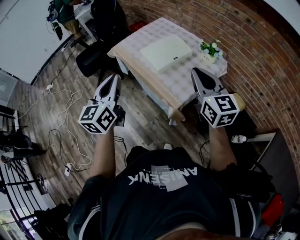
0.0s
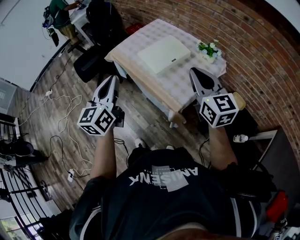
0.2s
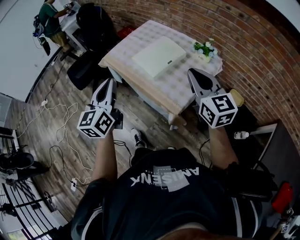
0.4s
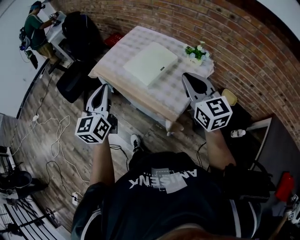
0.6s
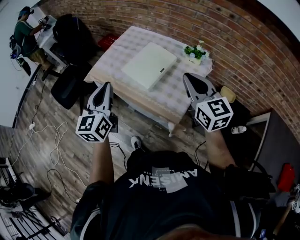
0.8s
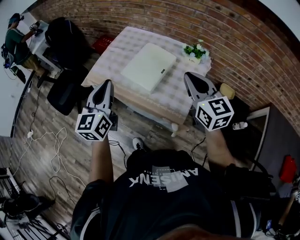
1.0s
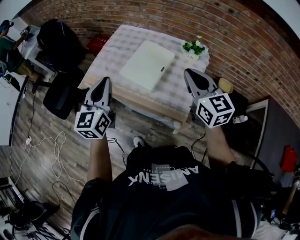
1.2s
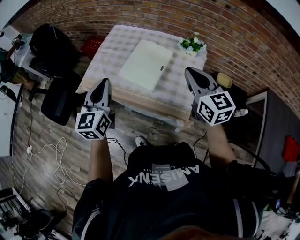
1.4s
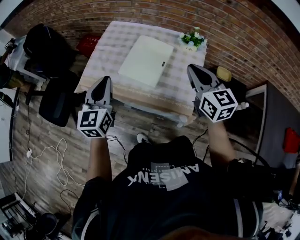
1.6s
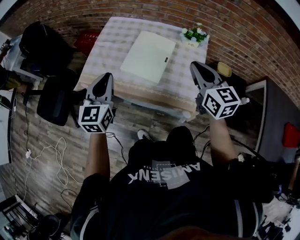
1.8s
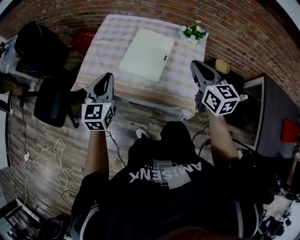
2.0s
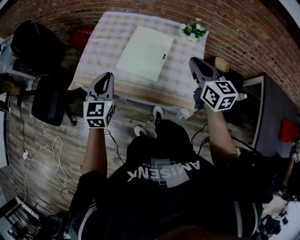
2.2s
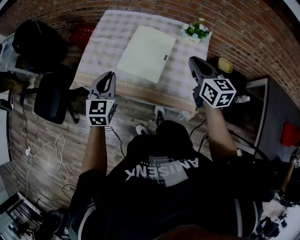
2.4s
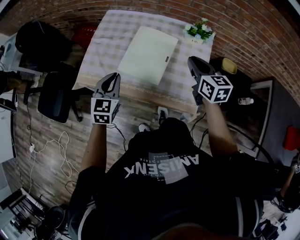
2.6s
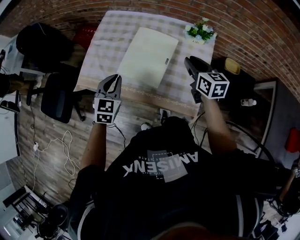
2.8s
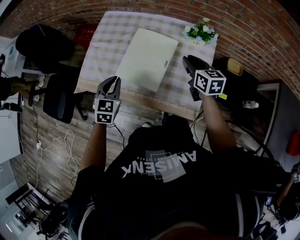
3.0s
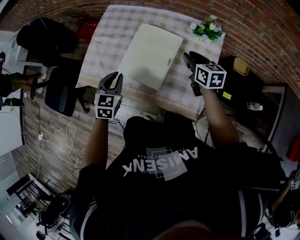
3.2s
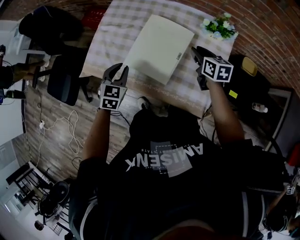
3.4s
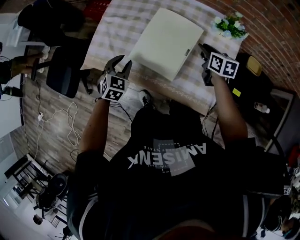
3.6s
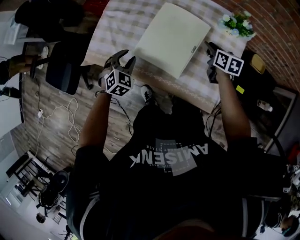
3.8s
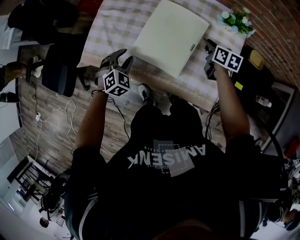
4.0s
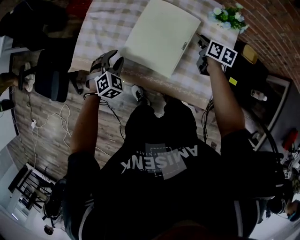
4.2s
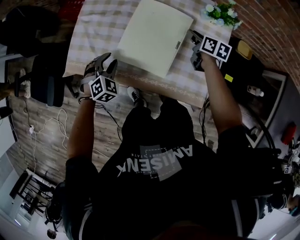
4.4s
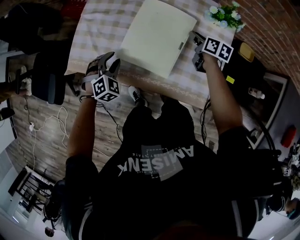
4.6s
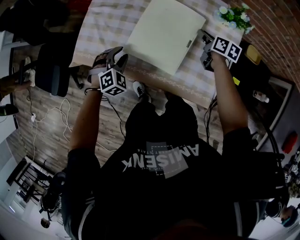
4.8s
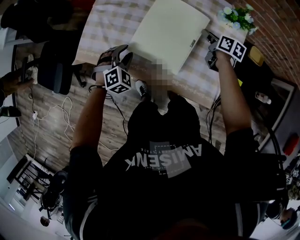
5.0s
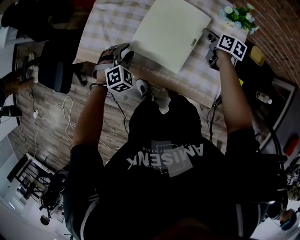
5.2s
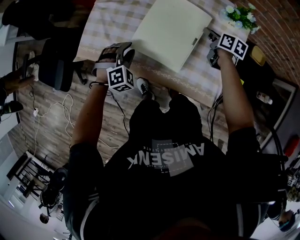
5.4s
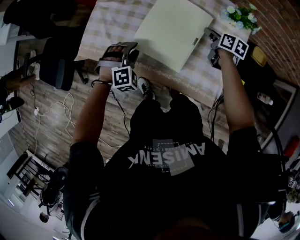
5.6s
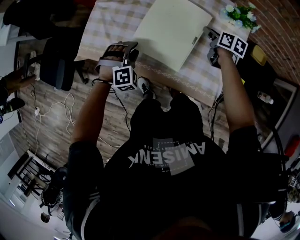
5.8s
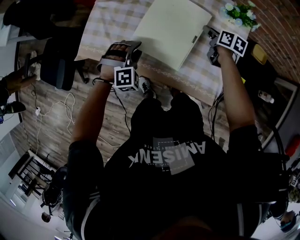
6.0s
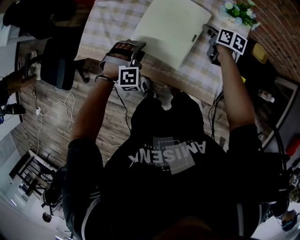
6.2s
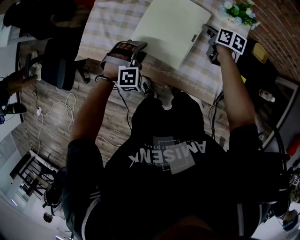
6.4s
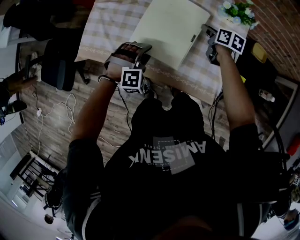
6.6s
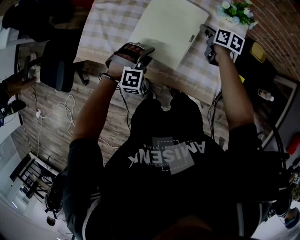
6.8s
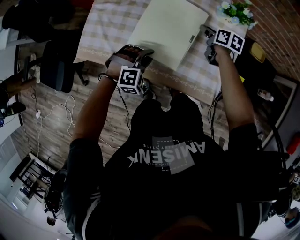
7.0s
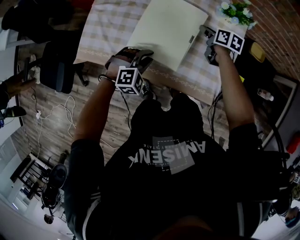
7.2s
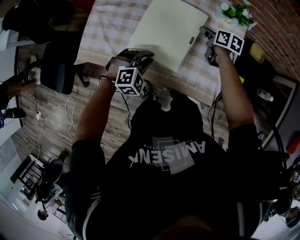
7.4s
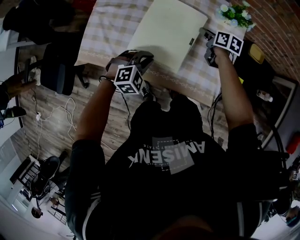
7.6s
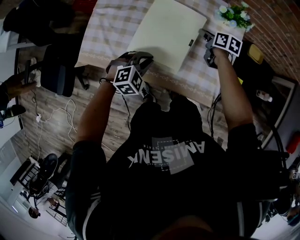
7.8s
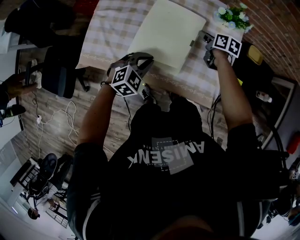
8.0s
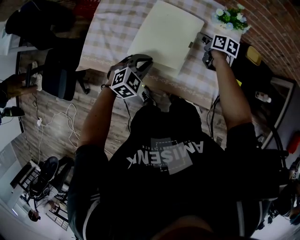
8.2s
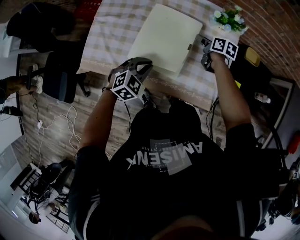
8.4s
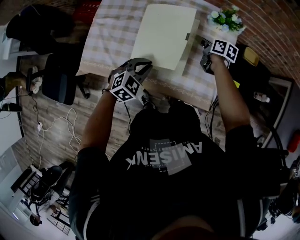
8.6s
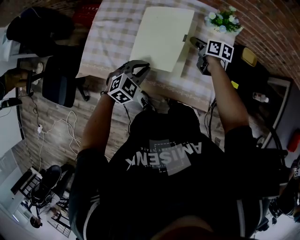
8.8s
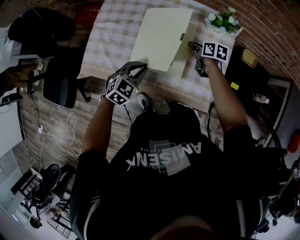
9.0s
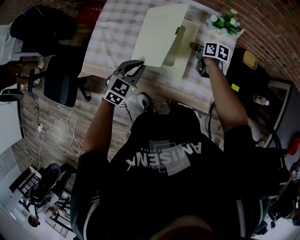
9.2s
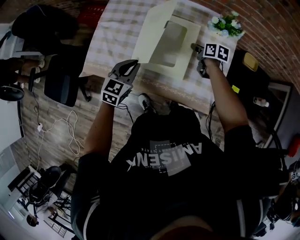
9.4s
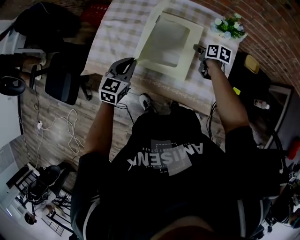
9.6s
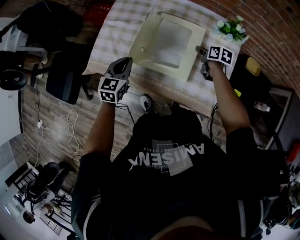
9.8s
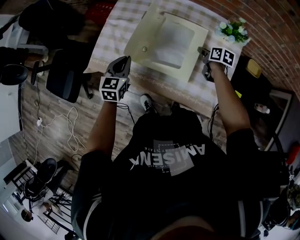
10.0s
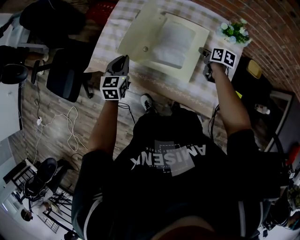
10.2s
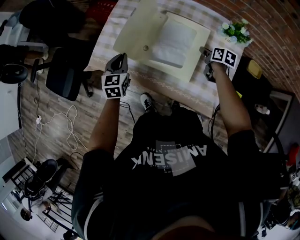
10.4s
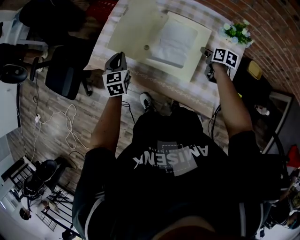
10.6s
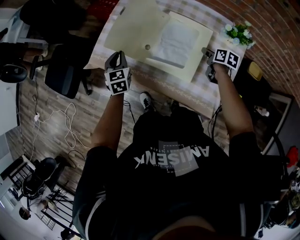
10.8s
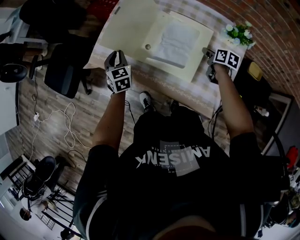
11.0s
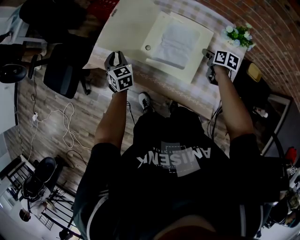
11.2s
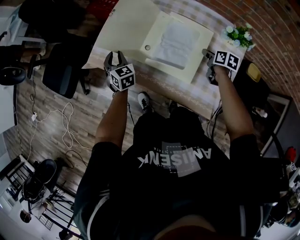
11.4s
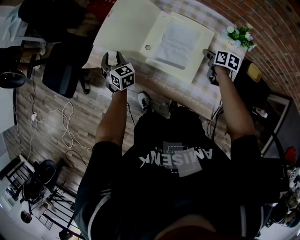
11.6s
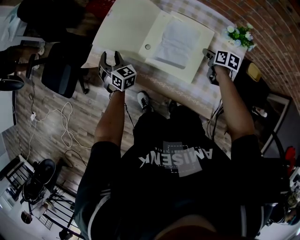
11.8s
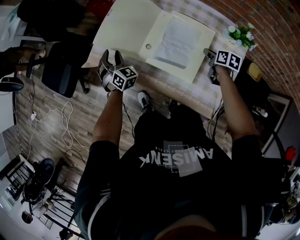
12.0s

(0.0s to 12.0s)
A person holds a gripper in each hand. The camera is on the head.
0.0s - 1.6s: The right gripper changes place by approximately 20 cm, and changes its angle by approximately 30 degrees, while the left gripper changes place by some 30 cm, and swivels about 30 degrees.
1.6s - 3.0s: Both grippers move downward and forward, some 20 cm. The right gripper turns by some 20 degrees. The left gripper swivels roughly 30 degrees.
3.0s - 4.4s: The right gripper shifts roughly 20 cm downward and forward, and rotates some 30 degrees. The left gripper goes some 15 cm downward, rotates approximately 40 degrees, and opens up.
4.4s - 6.0s: The left gripper shifts some 5 cm to the right, and rotates approximately 30 degrees.
6.0s - 7.6s: The left gripper travels to the right by about 5 cm, rotates some 30 degrees, and closes.
7.6s - 9.0s: The left gripper shifts by approximately 5 cm, and changes its angle by about 30 degrees.
9.0s - 10.4s: The left gripper moves to the left and forward, roughly 15 cm, and rotates approximately 50 degrees.
10.4s - 12.0s: The left gripper is displaced to the left, downward and forward by approximately 10 cm, rotates about 40 degrees, and opens its fingers.

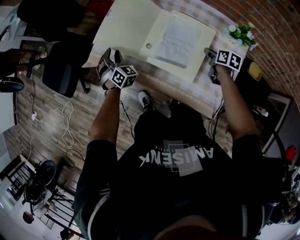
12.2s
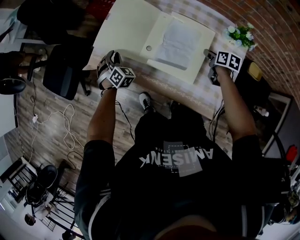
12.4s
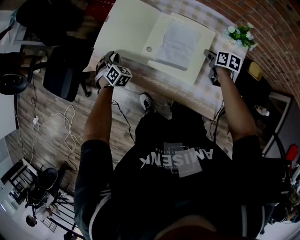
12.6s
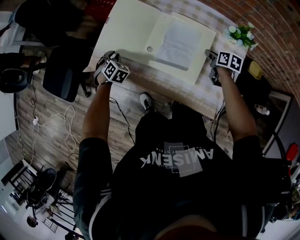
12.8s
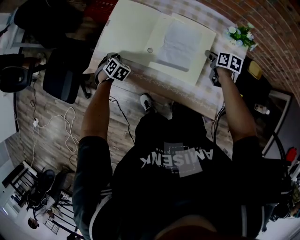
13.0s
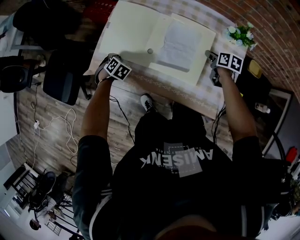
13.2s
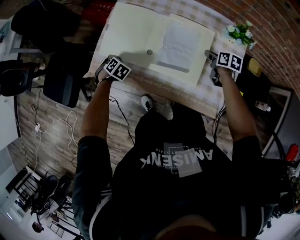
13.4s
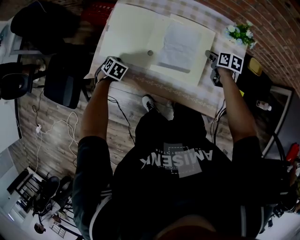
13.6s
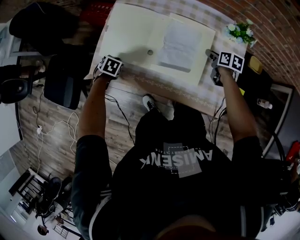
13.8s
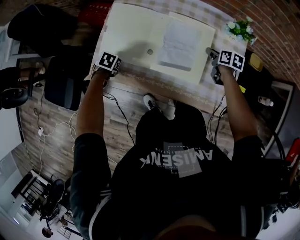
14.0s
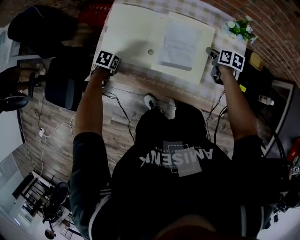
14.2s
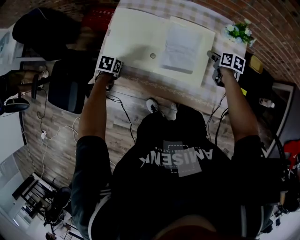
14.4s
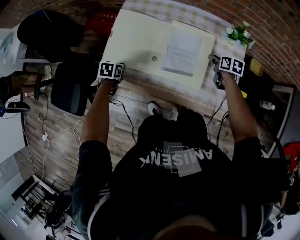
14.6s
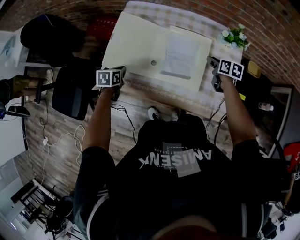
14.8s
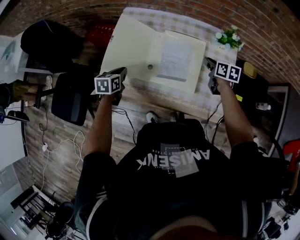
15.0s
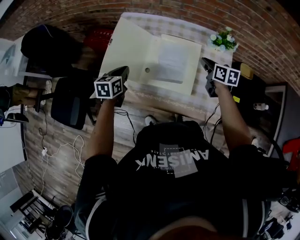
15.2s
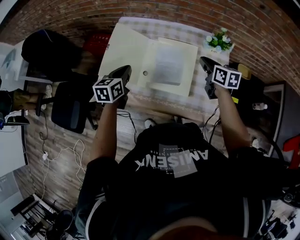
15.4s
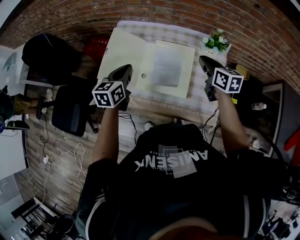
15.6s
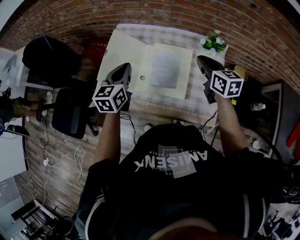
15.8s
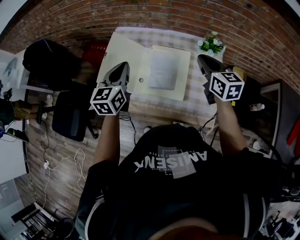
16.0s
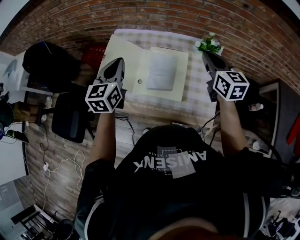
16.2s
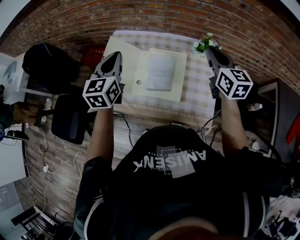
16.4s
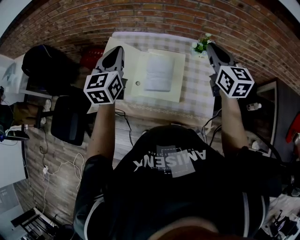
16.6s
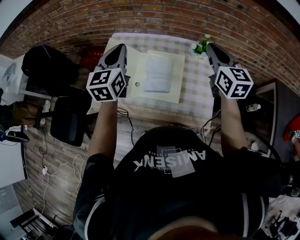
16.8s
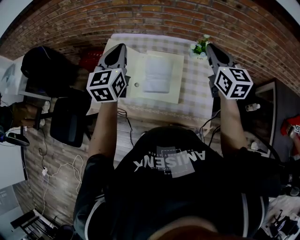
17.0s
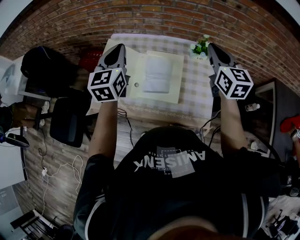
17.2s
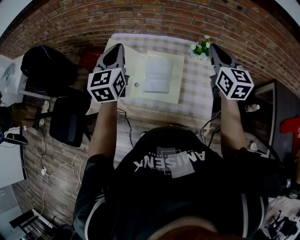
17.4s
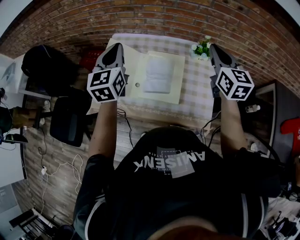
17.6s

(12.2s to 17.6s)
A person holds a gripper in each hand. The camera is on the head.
12.2s - 13.6s: The left gripper shifts roughly 10 cm downward, angles its fingers downward, by about 40 degrees, and closes.
13.6s - 15.0s: The left gripper heads upward, covering roughly 15 cm, and swivels roughly 40 degrees. The right gripper travels upward by approximately 10 cm.
15.0s - 16.2s: The left gripper goes roughly 25 cm upward and to the right, and tips its fingers upward by some 30 degrees. Meanwhile the right gripper heads upward, covering approximately 25 cm, and rotates roughly 30 degrees.
16.2s - 17.6s: The two grippers go approximately 5 cm upward.

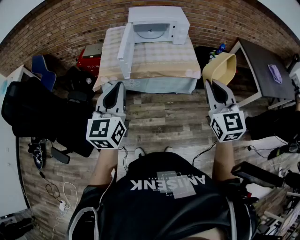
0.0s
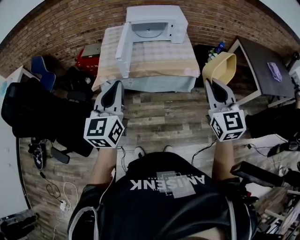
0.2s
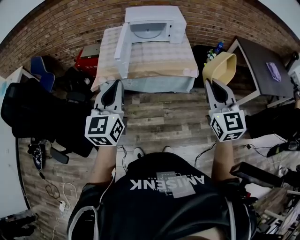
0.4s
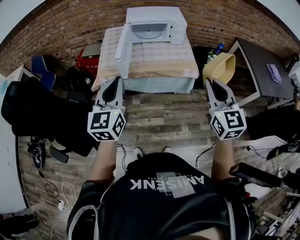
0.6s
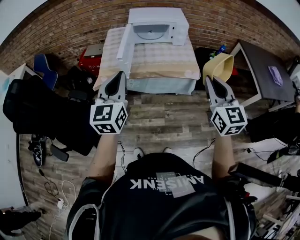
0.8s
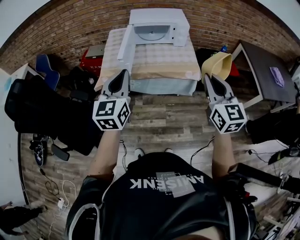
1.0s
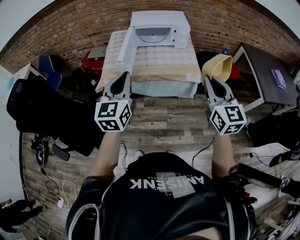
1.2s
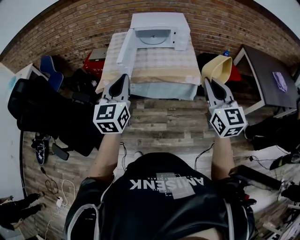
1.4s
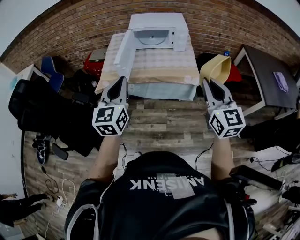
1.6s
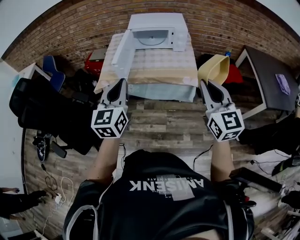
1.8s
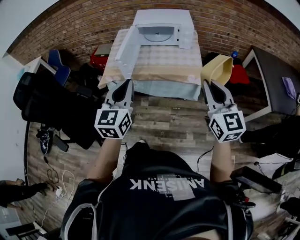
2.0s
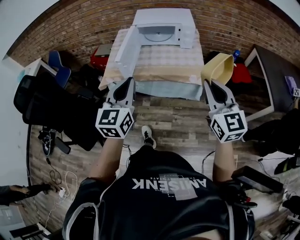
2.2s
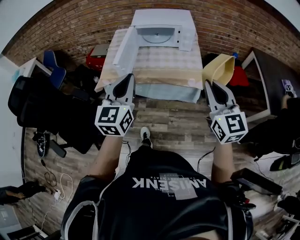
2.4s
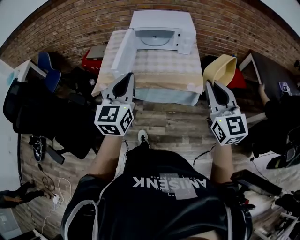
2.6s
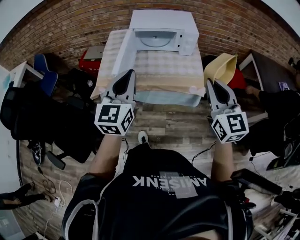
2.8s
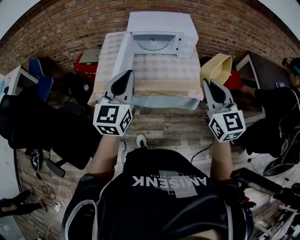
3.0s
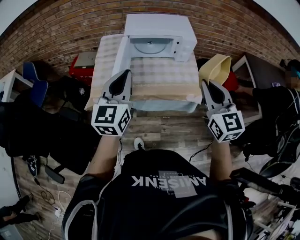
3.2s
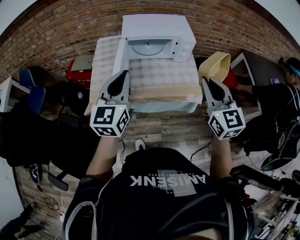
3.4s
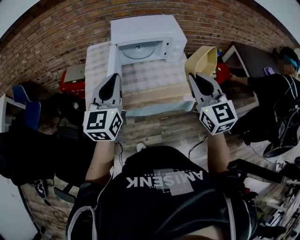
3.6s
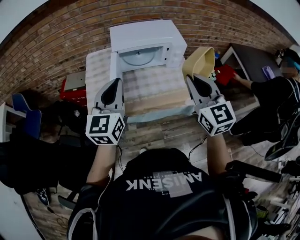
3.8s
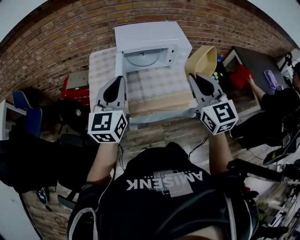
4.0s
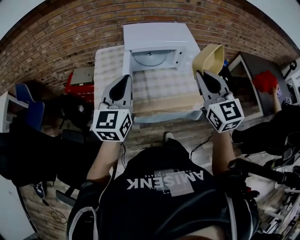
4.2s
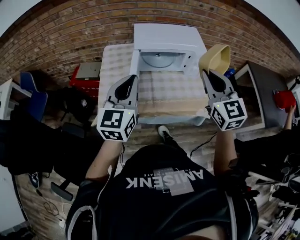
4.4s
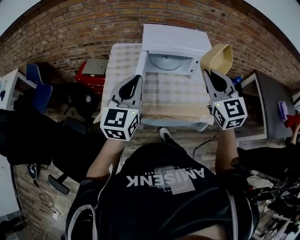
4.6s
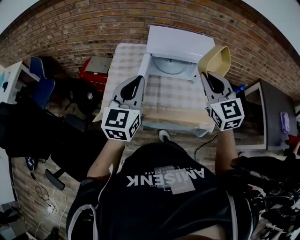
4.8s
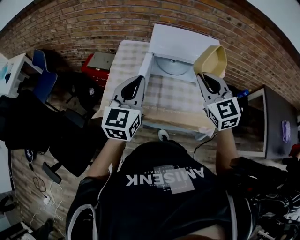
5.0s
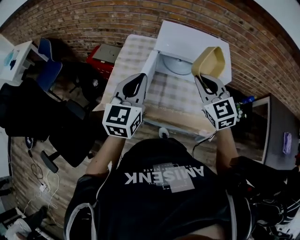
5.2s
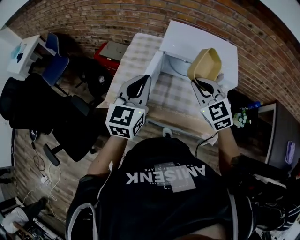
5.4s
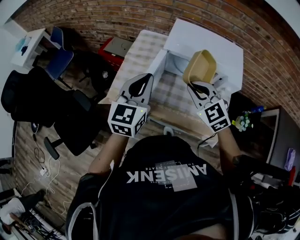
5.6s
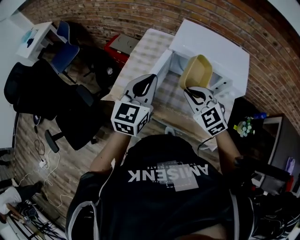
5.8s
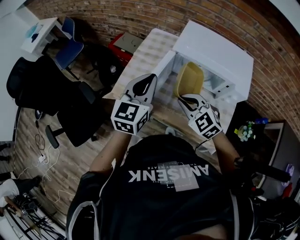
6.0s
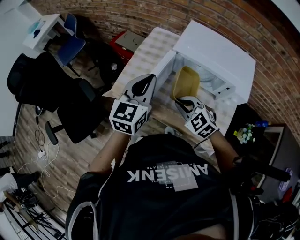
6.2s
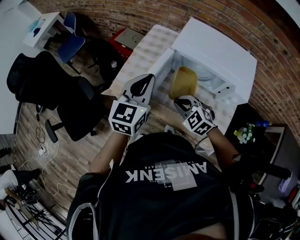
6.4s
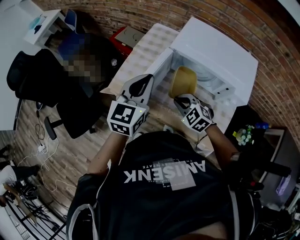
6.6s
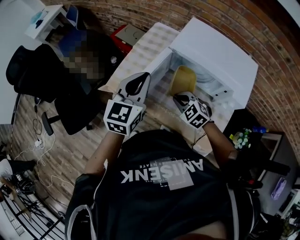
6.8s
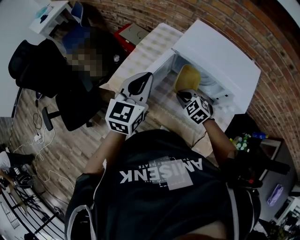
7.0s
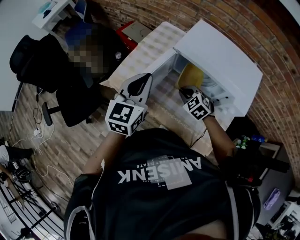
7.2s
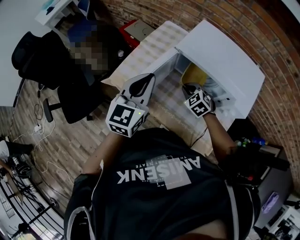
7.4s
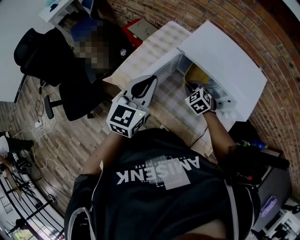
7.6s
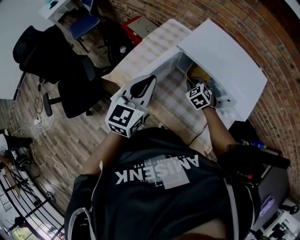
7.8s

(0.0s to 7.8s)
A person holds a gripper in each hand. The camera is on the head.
0.0s - 1.6s: The grippers both shift to the right by roughly 5 cm.
1.6s - 3.2s: The two grippers go approximately 20 cm forward.
3.2s - 4.6s: The left gripper shifts approximately 15 cm forward and to the left. The right gripper shifts about 20 cm forward and to the left.
4.6s - 6.2s: The left gripper ends up some 10 cm from where it was, and swivels some 20 degrees, while the right gripper travels downward by some 25 cm, and tips its fingers downward by roughly 30 degrees.
6.2s - 7.8s: The right gripper heads forward, downward and to the right, covering approximately 20 cm.
